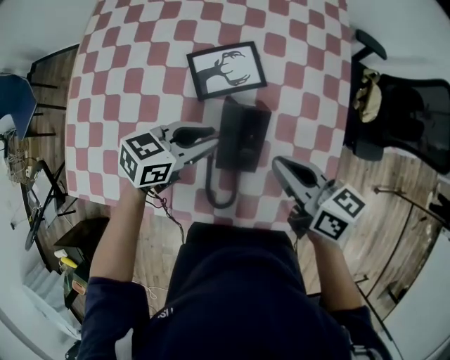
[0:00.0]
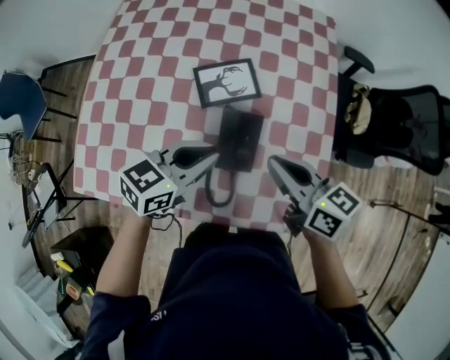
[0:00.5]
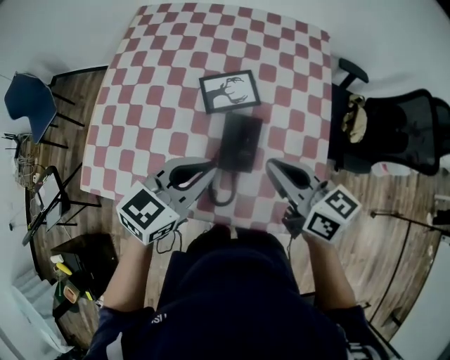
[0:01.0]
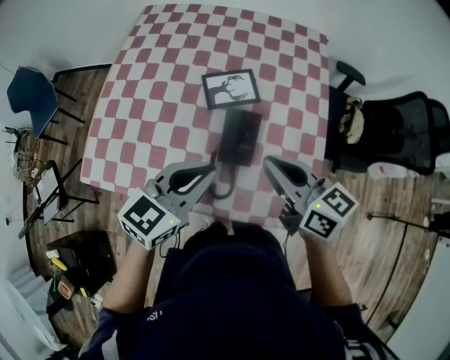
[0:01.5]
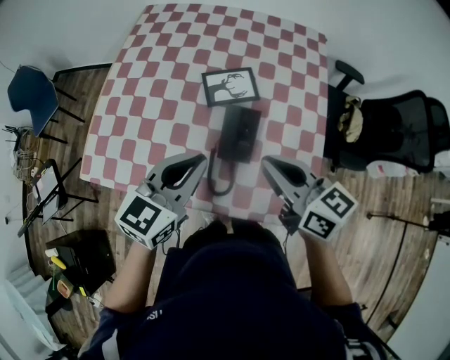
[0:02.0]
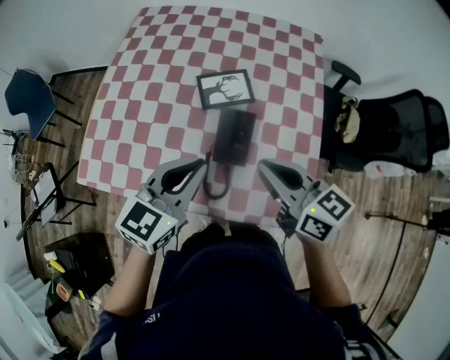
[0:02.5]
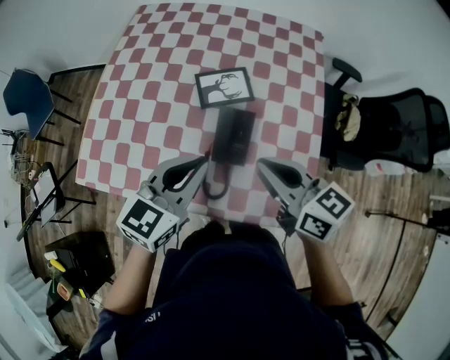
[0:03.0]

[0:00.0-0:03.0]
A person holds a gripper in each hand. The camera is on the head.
0:00.0 to 0:01.5: The left gripper is displaced upward and backward by roughly 20 cm, and rotates some 30 degrees. Meanwhile the right gripper shifts some 15 cm upward and backward.
0:01.5 to 0:03.0: The grippers stay close to where they were, moving slightly.

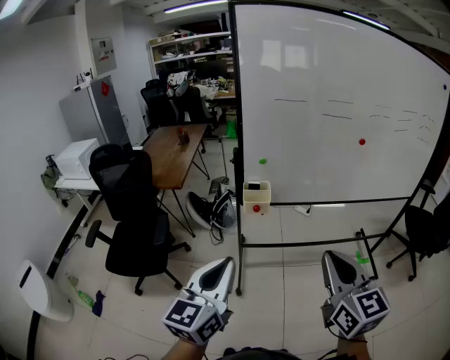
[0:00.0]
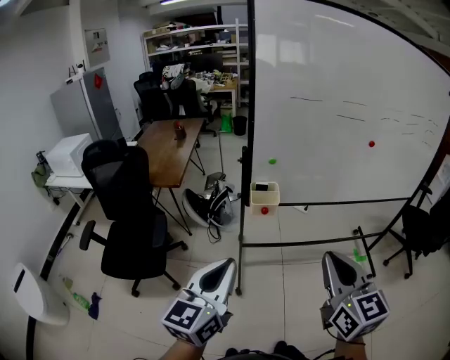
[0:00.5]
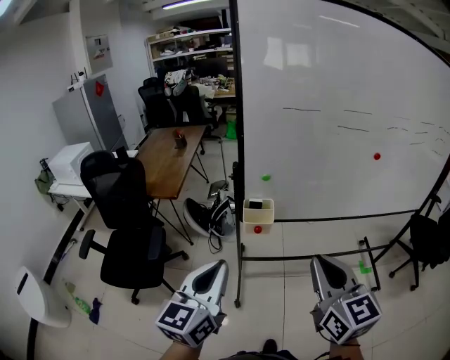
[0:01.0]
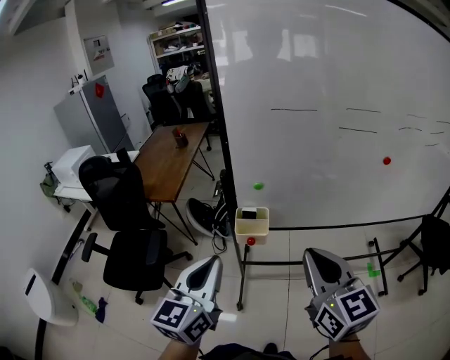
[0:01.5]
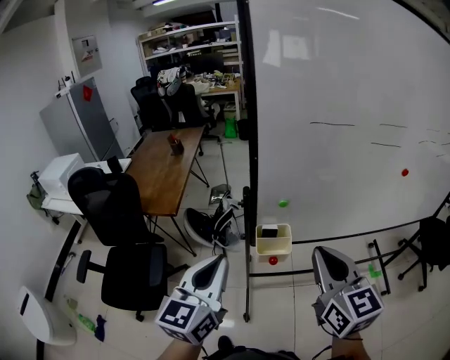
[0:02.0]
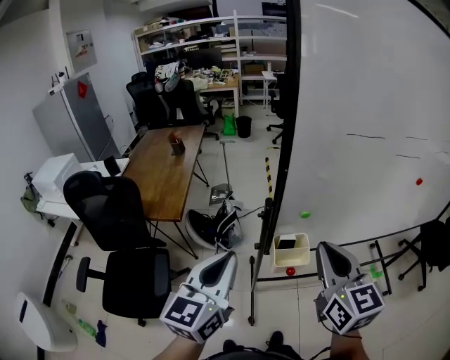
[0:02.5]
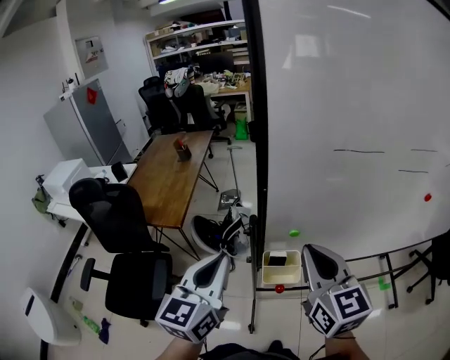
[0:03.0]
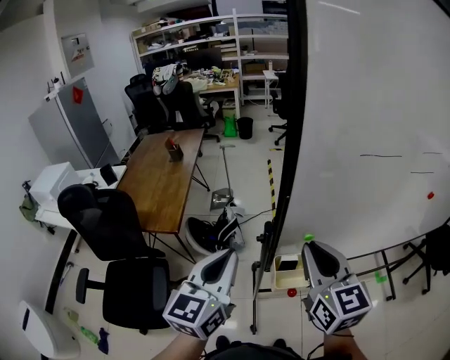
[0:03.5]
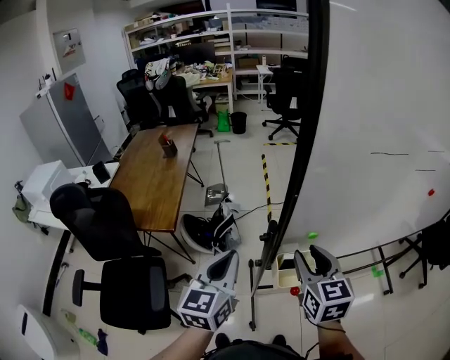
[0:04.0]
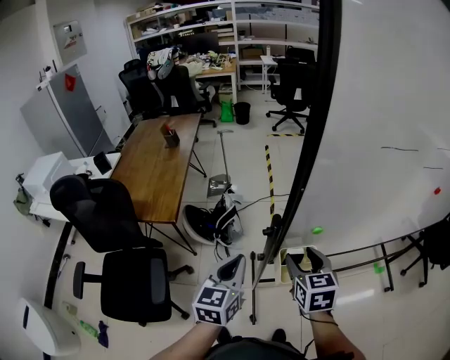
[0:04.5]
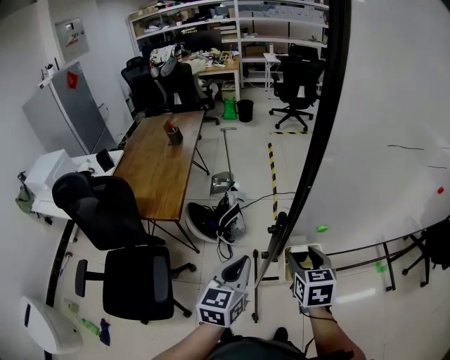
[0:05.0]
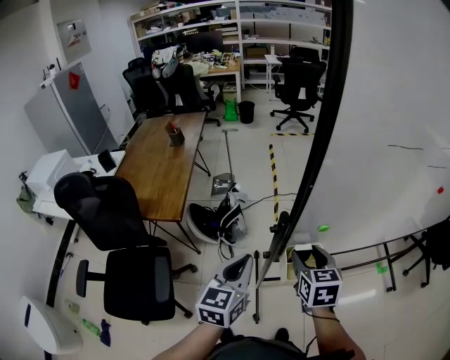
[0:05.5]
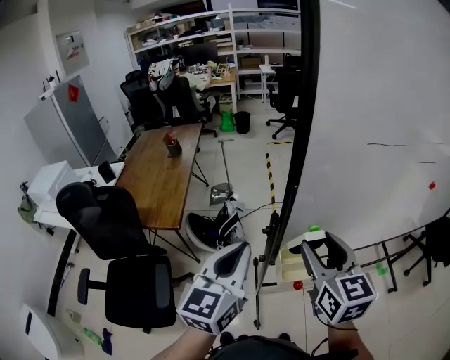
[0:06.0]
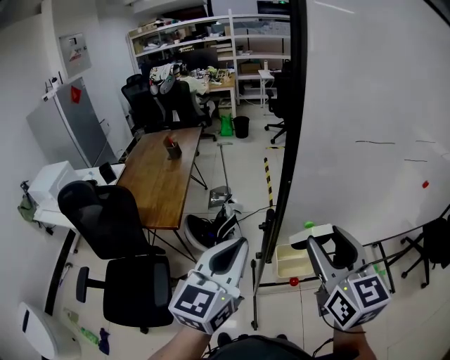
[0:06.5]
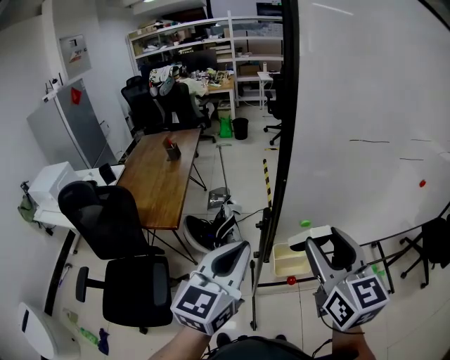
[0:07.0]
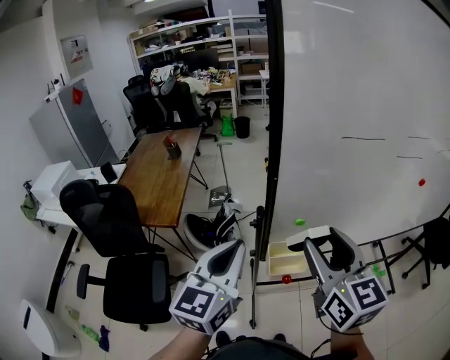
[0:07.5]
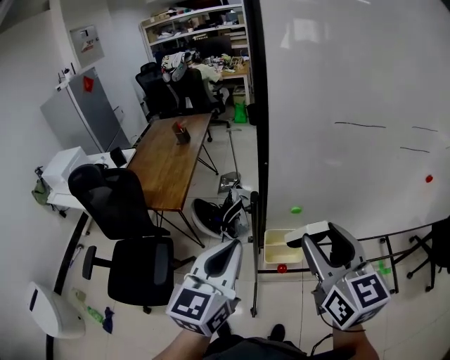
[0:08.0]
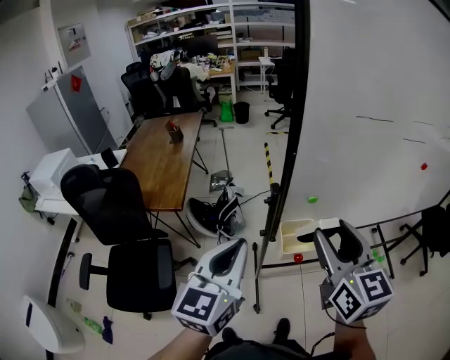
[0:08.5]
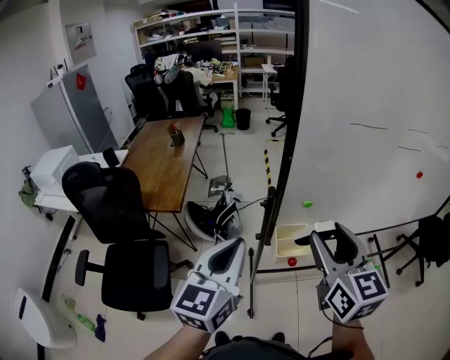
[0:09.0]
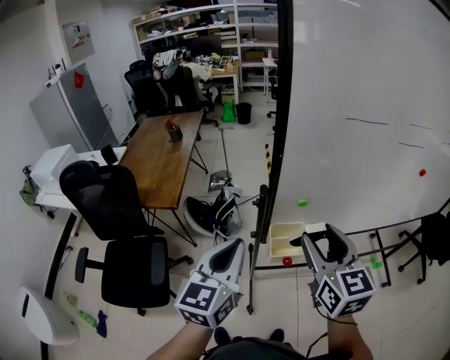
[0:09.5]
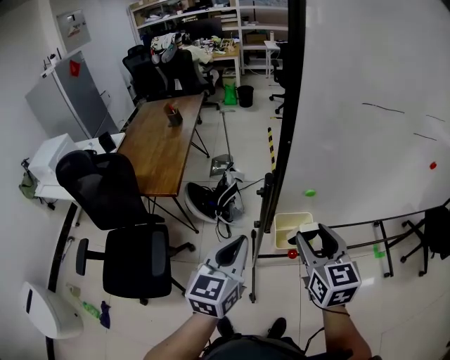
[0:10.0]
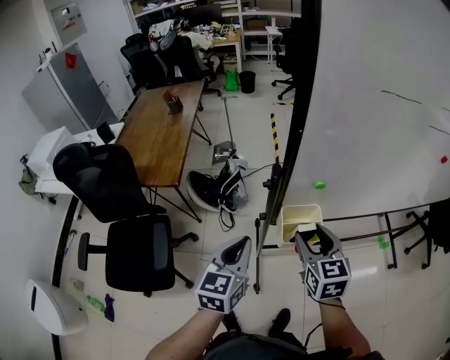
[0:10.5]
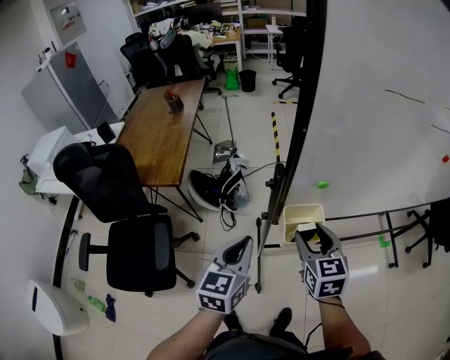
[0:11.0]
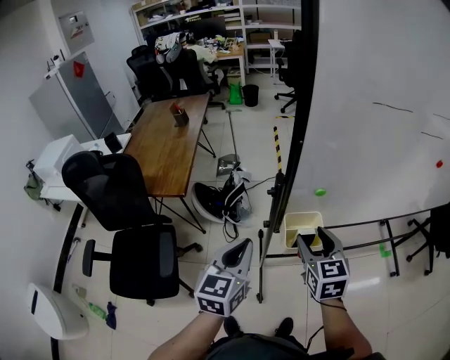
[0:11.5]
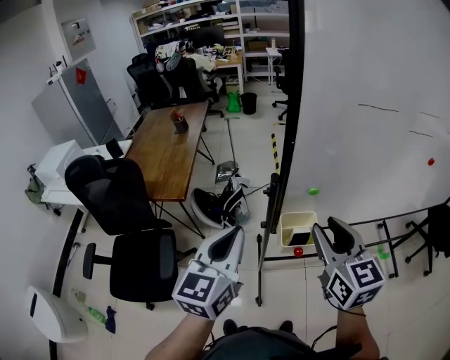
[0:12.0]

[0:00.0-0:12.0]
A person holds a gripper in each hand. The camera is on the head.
0:00.0 to 0:02.0: The grippers both shift forward by about 40 cm.
0:02.0 to 0:04.0: The left gripper shifts approximately 25 cm forward; the right gripper goes approximately 25 cm forward, downward and to the left, and opens.
0:04.0 to 0:06.0: The two grippers go approximately 5 cm upward.
0:06.0 to 0:08.0: The left gripper heads backward and to the right, covering some 10 cm, while the right gripper heads to the right, backward and upward, covering roughly 10 cm.
0:08.0 to 0:10.0: Both grippers move downward, approximately 15 cm.
0:10.0 to 0:12.0: The grippers both shift upward by roughly 10 cm.

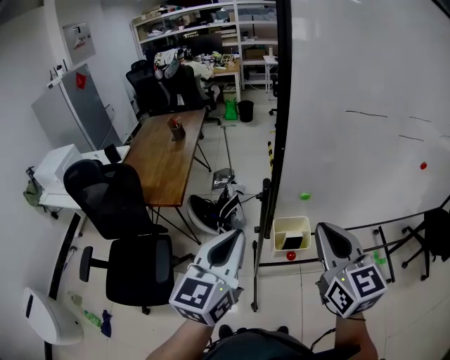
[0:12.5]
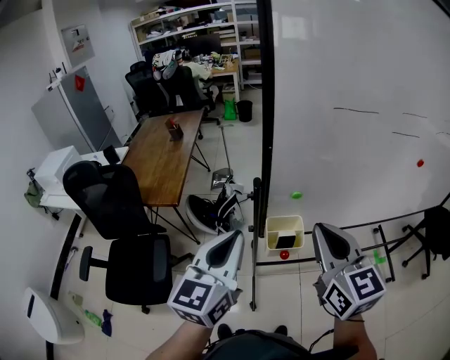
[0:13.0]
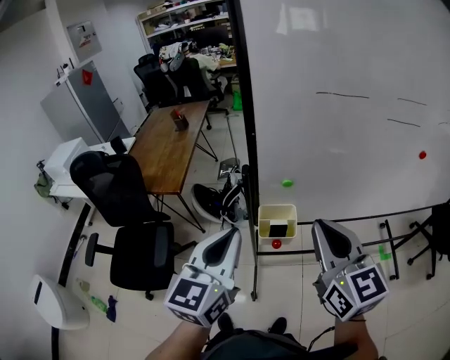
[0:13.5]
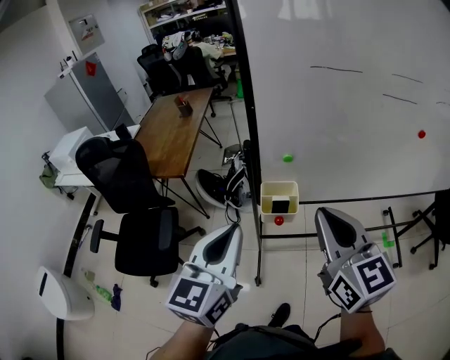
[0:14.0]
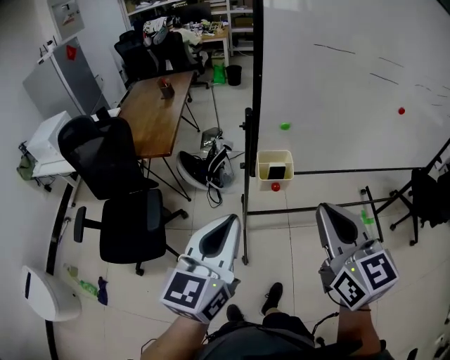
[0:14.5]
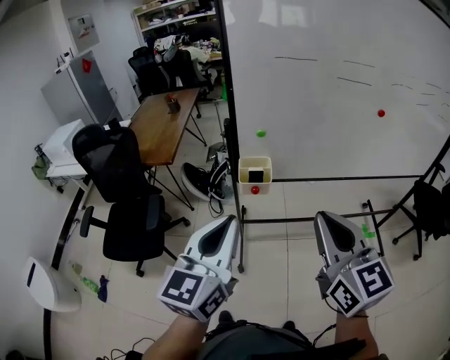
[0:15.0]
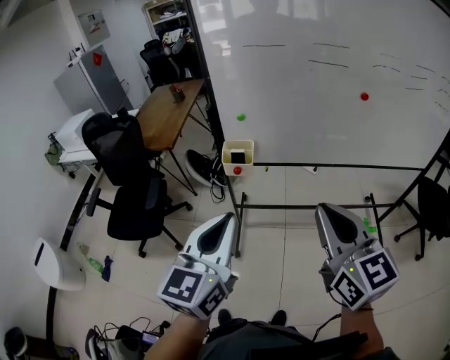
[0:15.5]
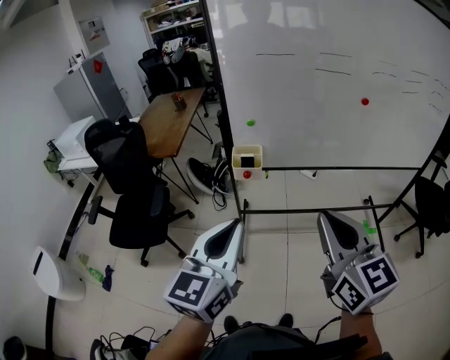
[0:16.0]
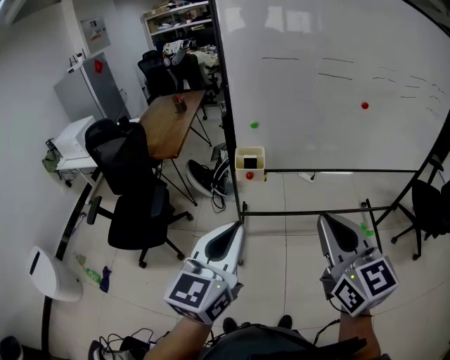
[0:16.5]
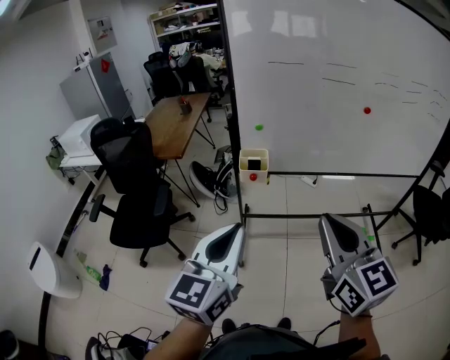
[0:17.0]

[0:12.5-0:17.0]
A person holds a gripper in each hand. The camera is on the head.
0:12.5 to 0:14.5: The two grippers go roughly 20 cm backward.
0:14.5 to 0:17.0: The grippers both shift backward and to the right by approximately 30 cm.

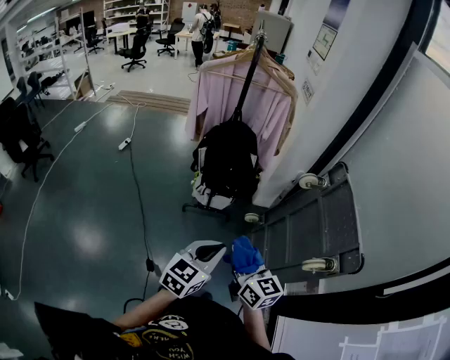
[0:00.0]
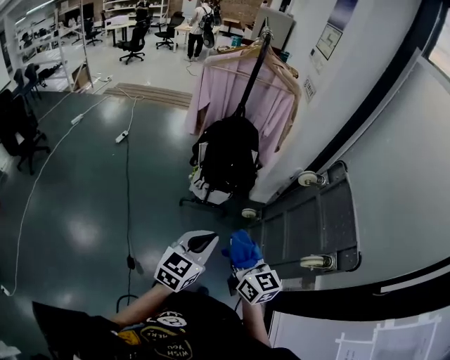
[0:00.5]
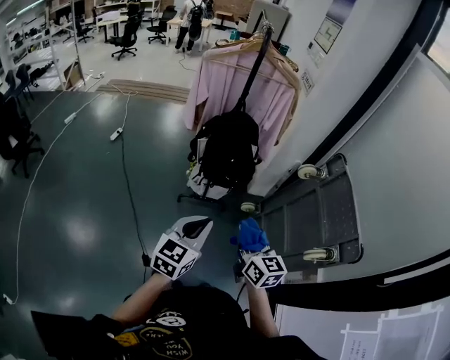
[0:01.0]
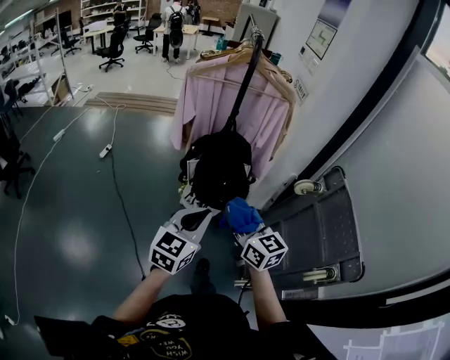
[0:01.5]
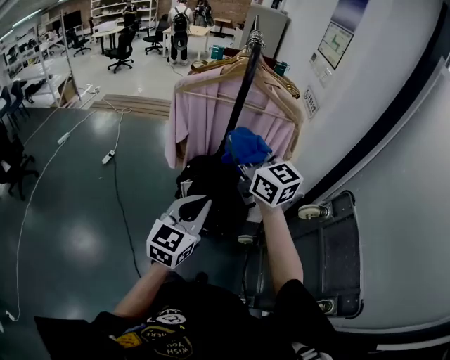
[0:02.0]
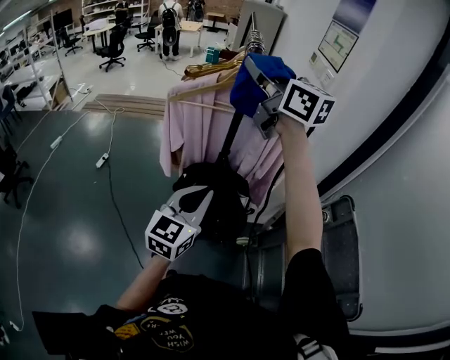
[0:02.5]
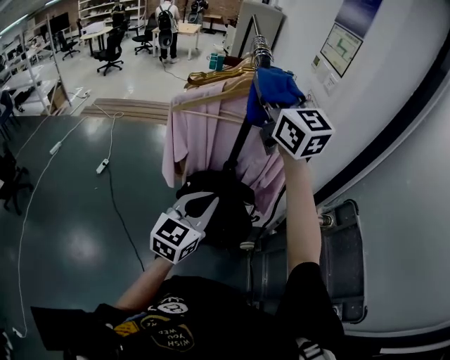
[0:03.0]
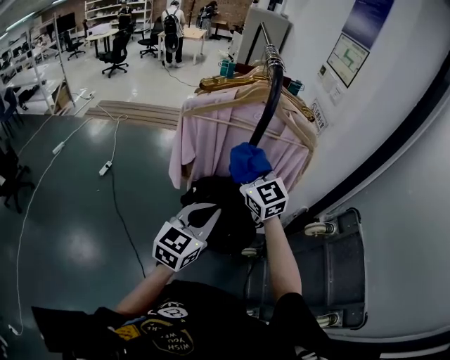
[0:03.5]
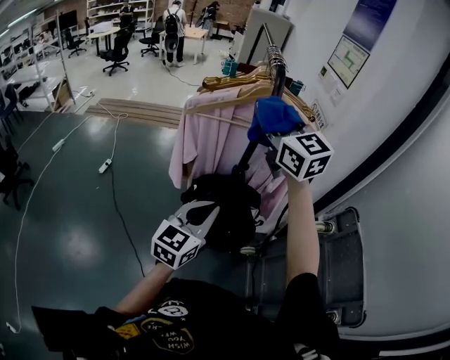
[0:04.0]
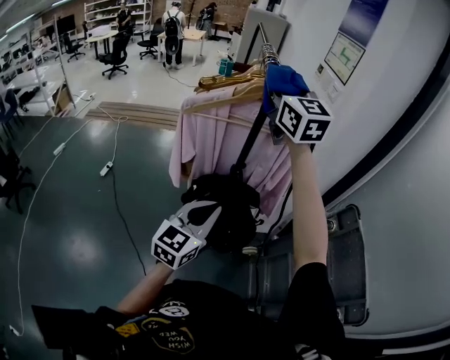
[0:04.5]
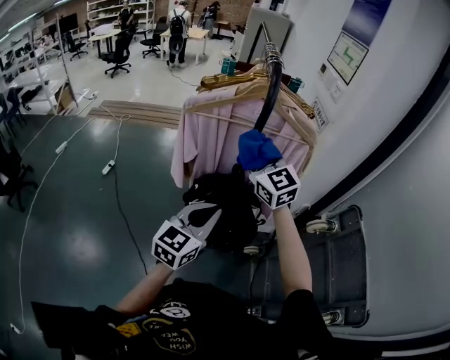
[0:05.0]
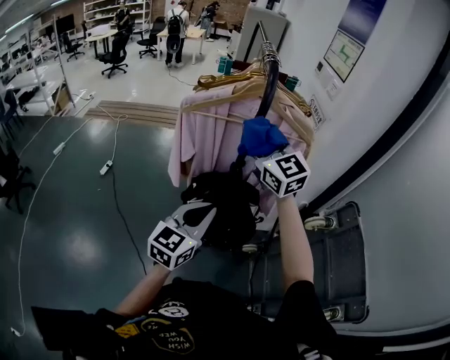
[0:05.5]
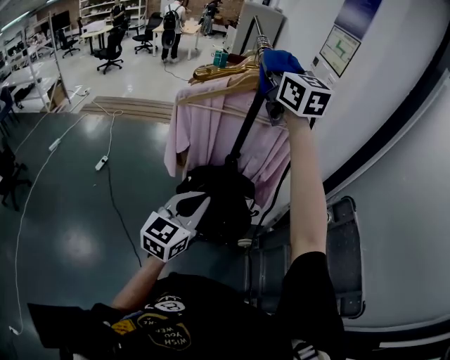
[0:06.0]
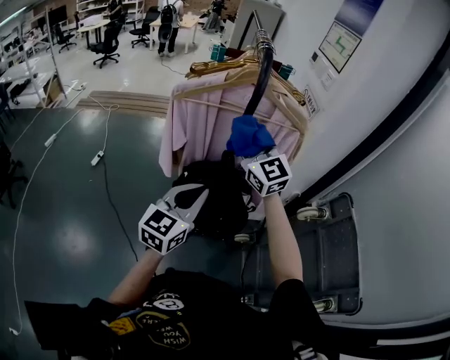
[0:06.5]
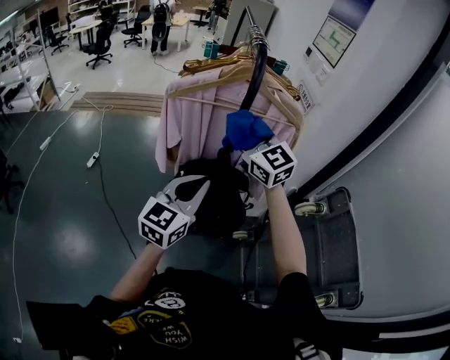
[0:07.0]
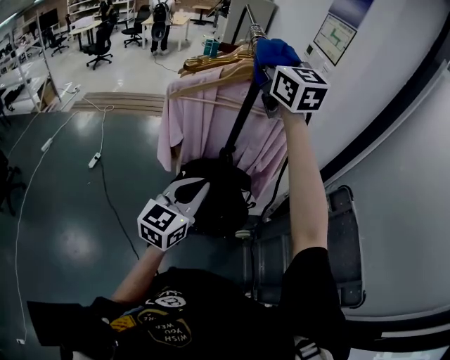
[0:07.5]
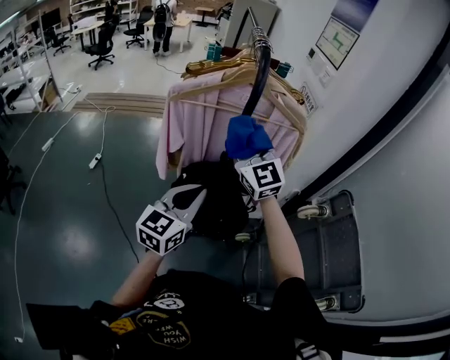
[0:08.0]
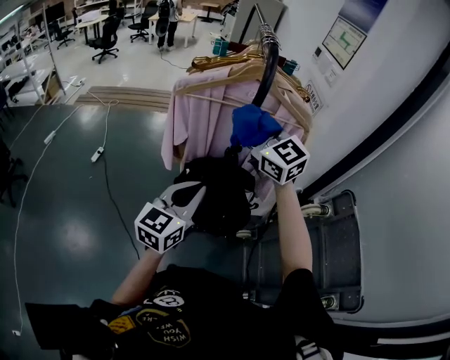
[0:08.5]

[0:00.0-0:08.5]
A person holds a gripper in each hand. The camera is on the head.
0:00.0 to 0:02.0: Both grippers move forward, roughly 40 cm. The right gripper rotates roughly 30 degrees.
0:02.0 to 0:04.0: The right gripper goes up and down, about 25 cm each way, reversing 2 times. Meanwhile the left gripper travels forward by some 10 cm.
0:04.0 to 0:06.5: The right gripper moves up and down over some 20 cm, changing direction 3 times.
0:06.5 to 0:08.5: The right gripper travels upward and back again, about 20 cm each way.
